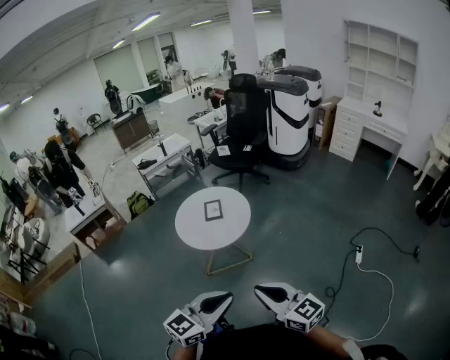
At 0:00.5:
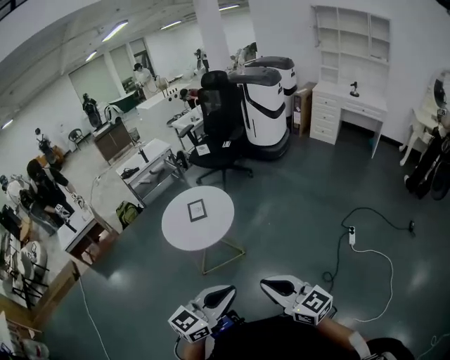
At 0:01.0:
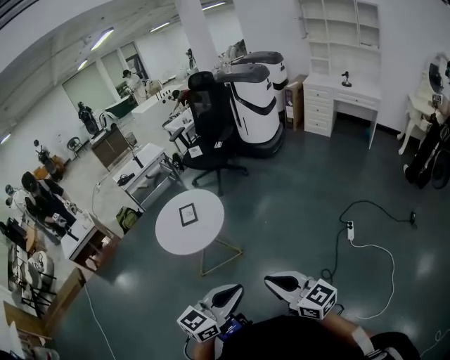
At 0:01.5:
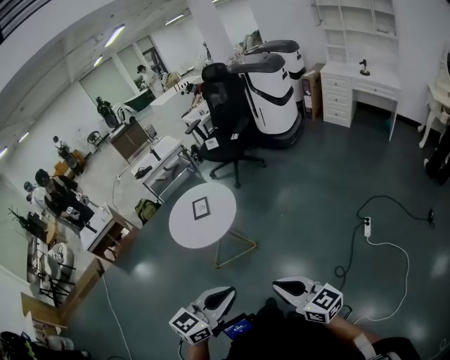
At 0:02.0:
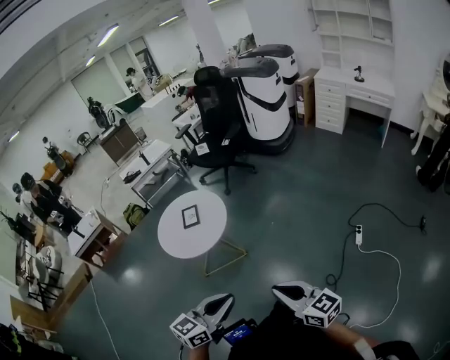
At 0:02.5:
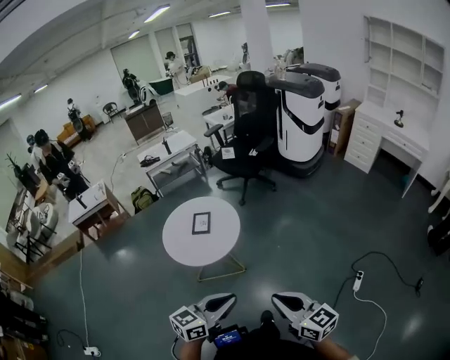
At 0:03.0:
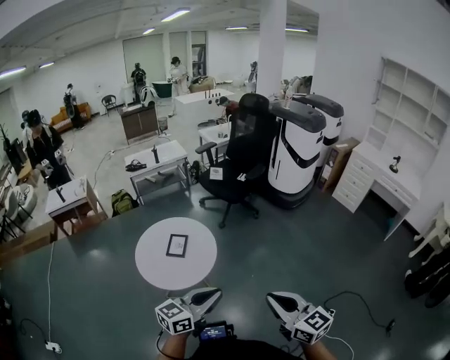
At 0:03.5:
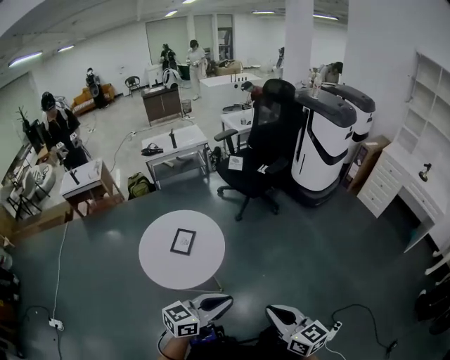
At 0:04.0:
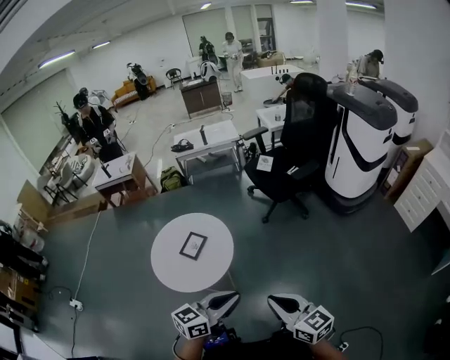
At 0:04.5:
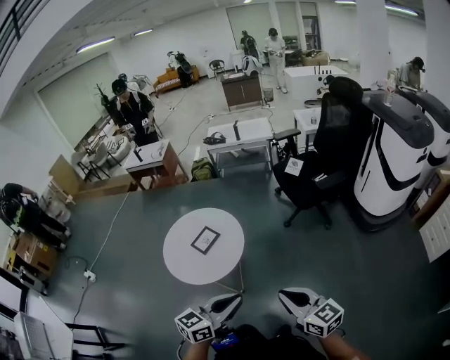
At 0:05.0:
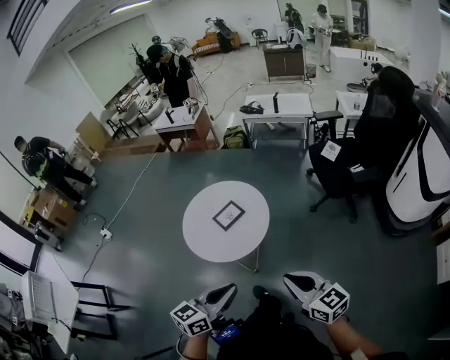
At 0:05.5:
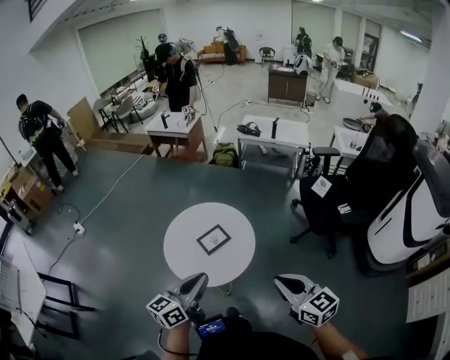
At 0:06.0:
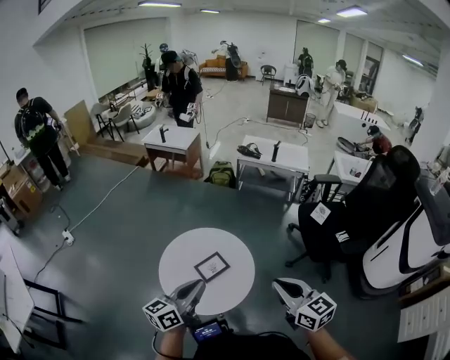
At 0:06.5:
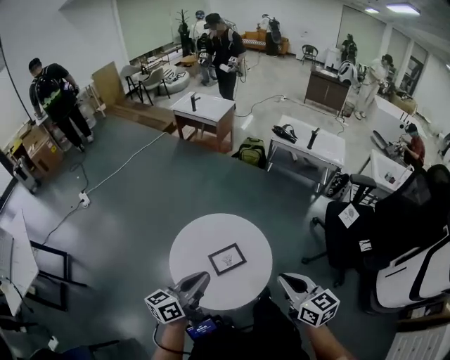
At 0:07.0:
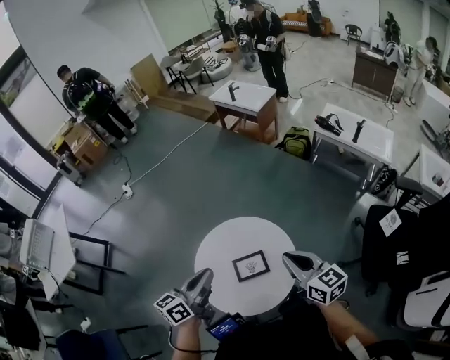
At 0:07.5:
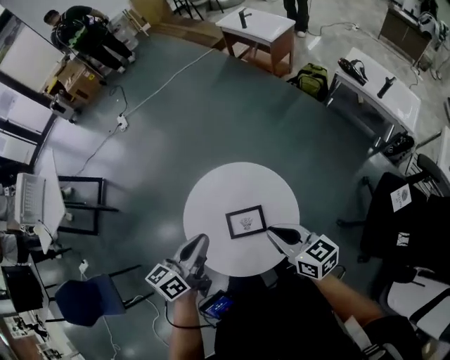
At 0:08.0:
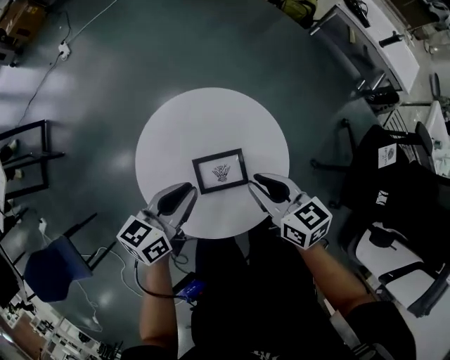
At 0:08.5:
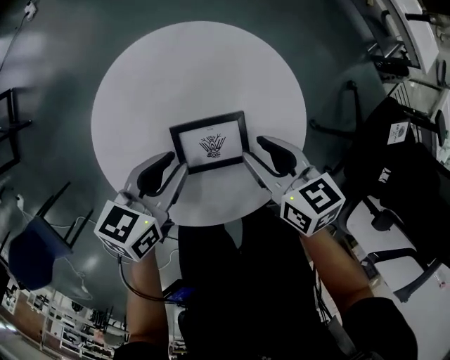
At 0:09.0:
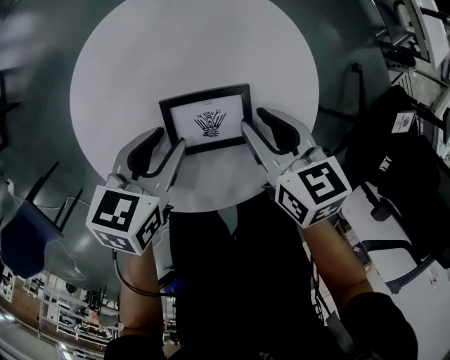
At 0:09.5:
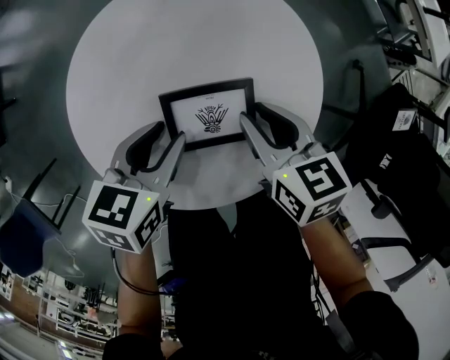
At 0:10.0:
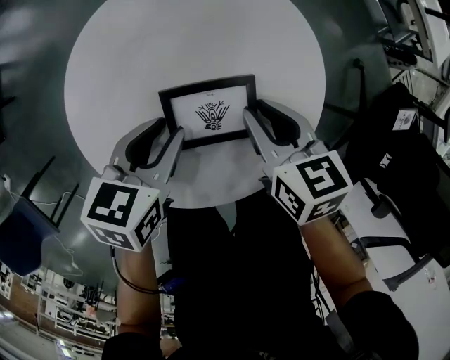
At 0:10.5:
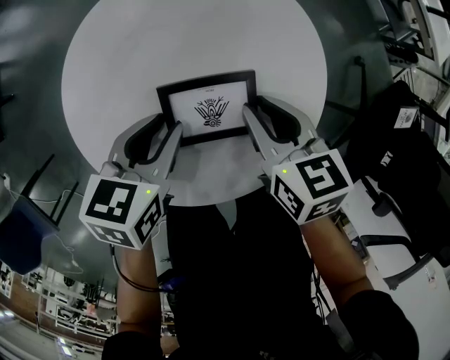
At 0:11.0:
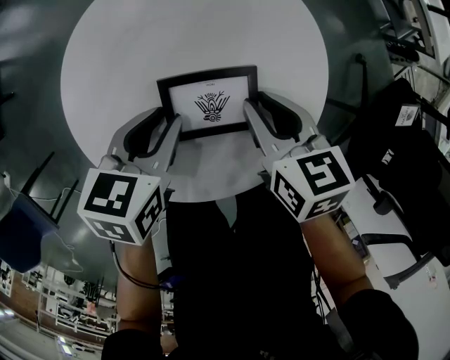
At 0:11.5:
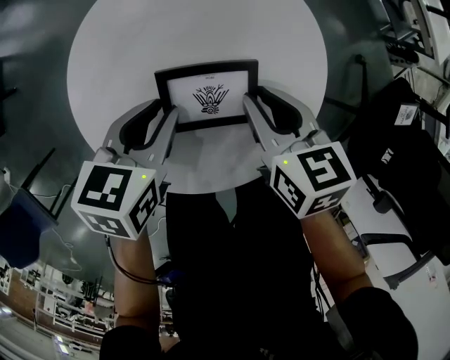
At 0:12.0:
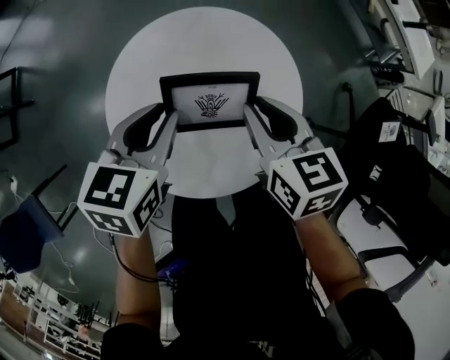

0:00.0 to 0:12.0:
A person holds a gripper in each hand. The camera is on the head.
0:00.0 to 0:02.0: The two grippers go approximately 20 cm to the right.
0:02.0 to 0:04.0: The pair of grippers is taken about 50 cm. The left gripper swivels roughly 30 degrees, while the right gripper swivels approximately 30 degrees.
0:04.0 to 0:06.0: The left gripper ends up roughly 30 cm from where it was, and rotates some 50 degrees, while the right gripper ends up about 35 cm from where it was, and rotates roughly 20 degrees.
0:06.0 to 0:08.0: The left gripper goes some 25 cm downward, and rotates roughly 30 degrees. Meanwhile the right gripper ends up roughly 40 cm from where it was, and changes its angle by roughly 40 degrees.
0:08.0 to 0:10.0: The grippers both shift downward by approximately 15 cm. The left gripper swivels roughly 20 degrees.
0:10.0 to 0:12.0: The grippers both shift upward by about 15 cm.

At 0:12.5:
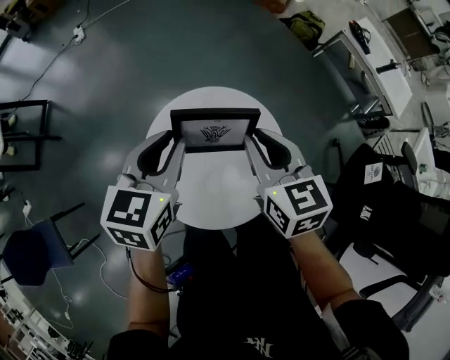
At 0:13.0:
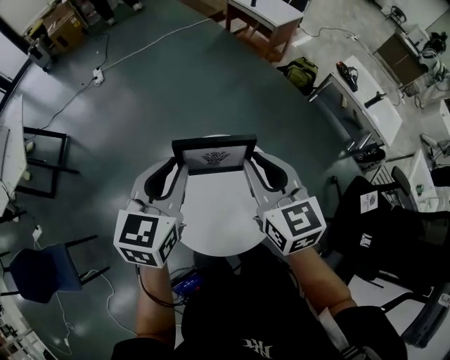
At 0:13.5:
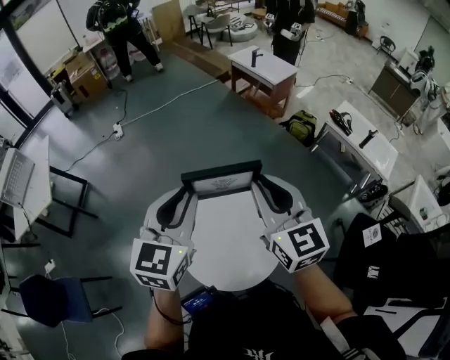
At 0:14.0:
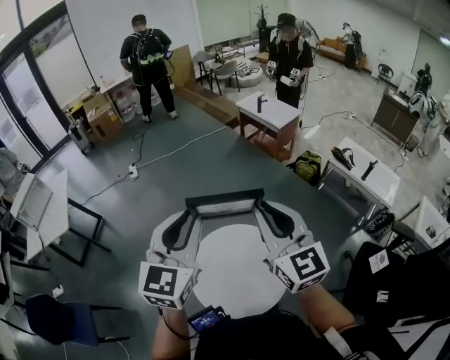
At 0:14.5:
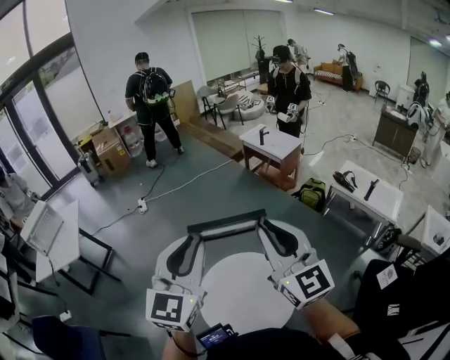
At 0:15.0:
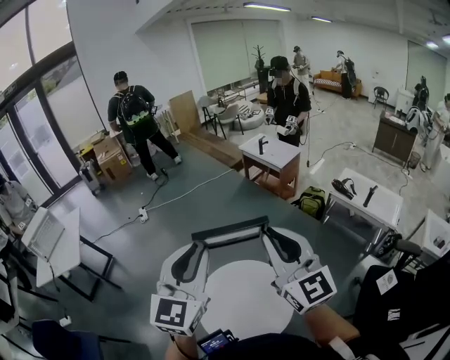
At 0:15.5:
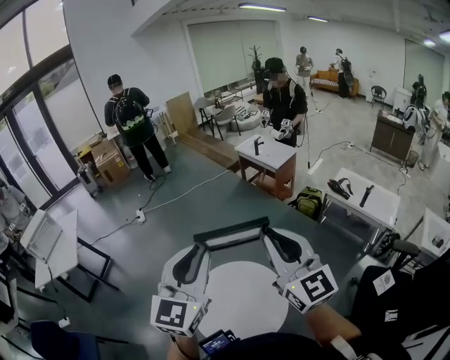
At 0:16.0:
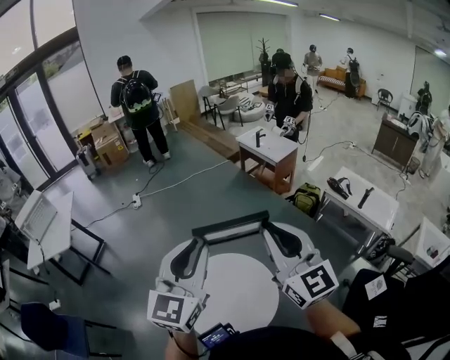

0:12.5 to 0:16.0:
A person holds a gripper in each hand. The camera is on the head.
0:12.5 to 0:14.5: Both grippers travel together upward, approximately 40 cm. The right gripper tips its fingers upward by roughly 40 degrees; the left gripper tilts its fingers approximately 30 degrees upward.
0:14.5 to 0:16.0: Both grippers travel together to the right, approximately 10 cm.

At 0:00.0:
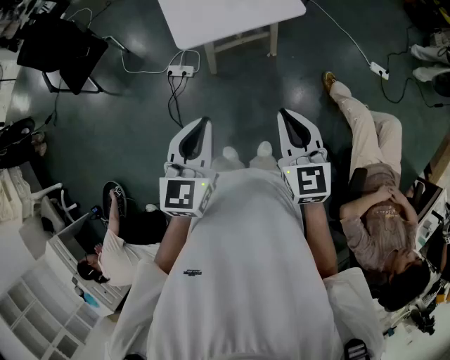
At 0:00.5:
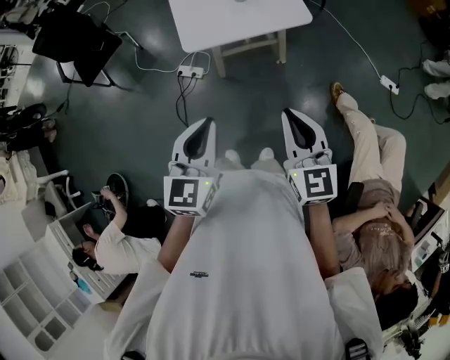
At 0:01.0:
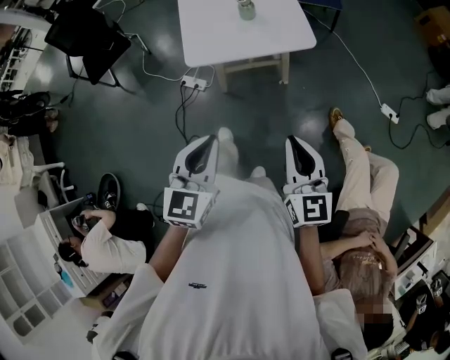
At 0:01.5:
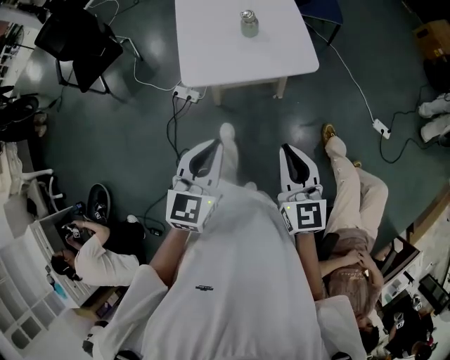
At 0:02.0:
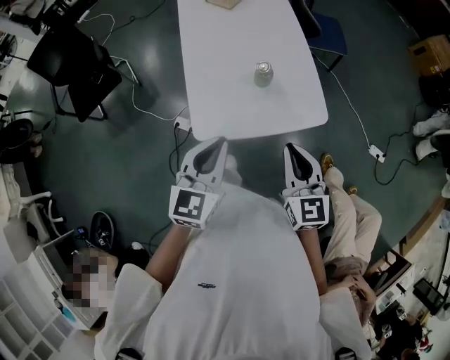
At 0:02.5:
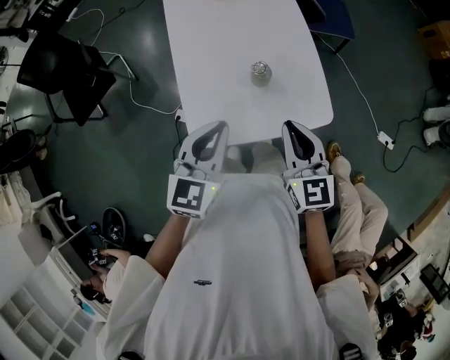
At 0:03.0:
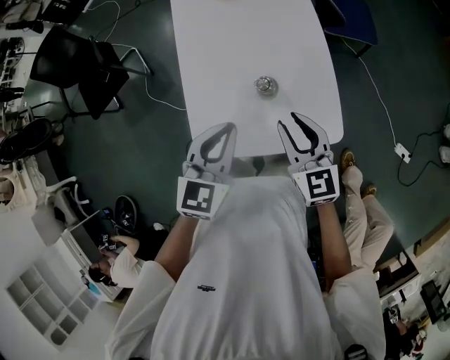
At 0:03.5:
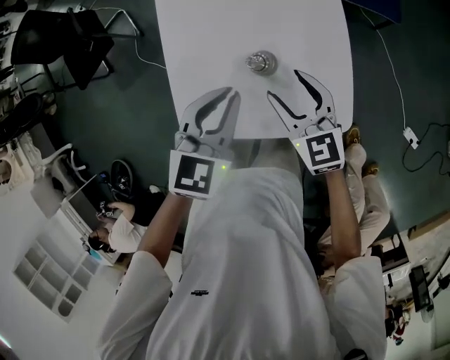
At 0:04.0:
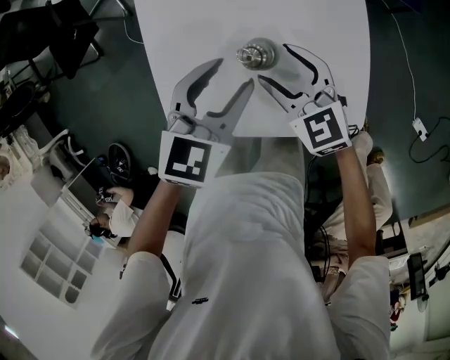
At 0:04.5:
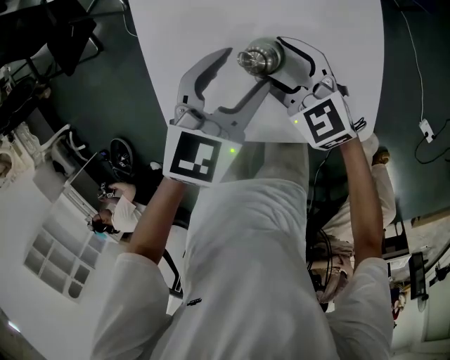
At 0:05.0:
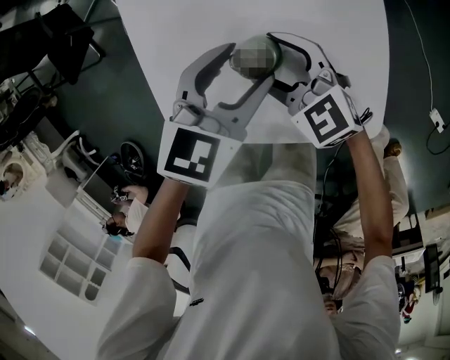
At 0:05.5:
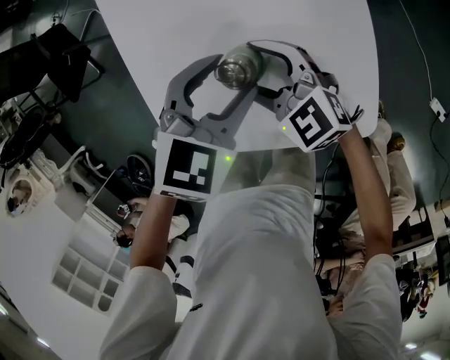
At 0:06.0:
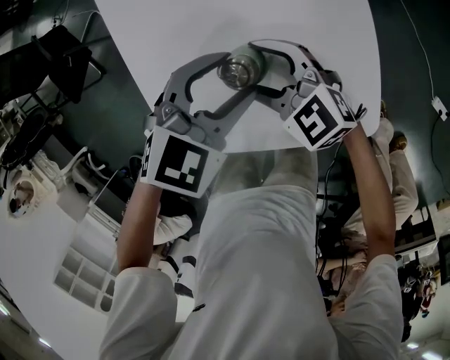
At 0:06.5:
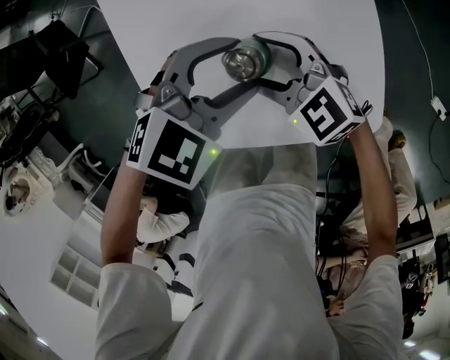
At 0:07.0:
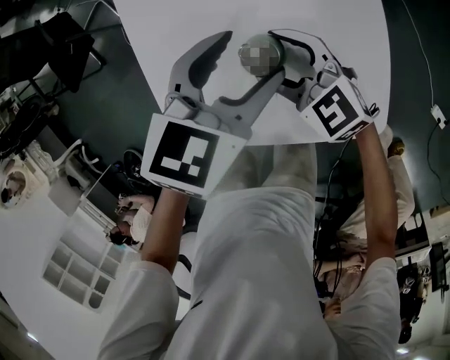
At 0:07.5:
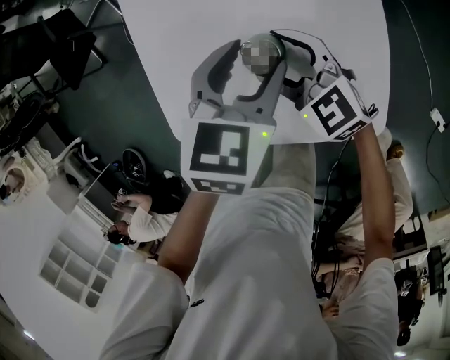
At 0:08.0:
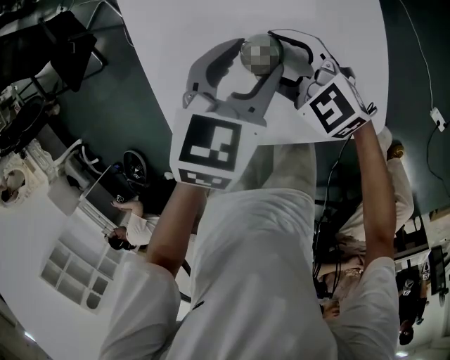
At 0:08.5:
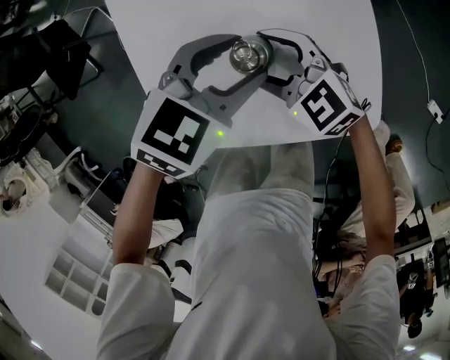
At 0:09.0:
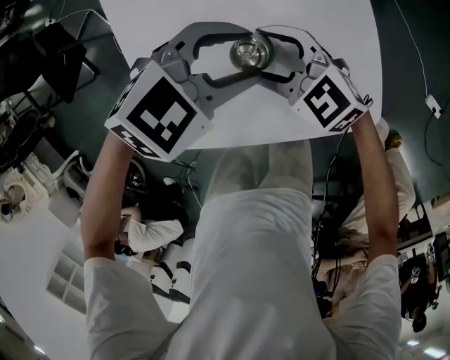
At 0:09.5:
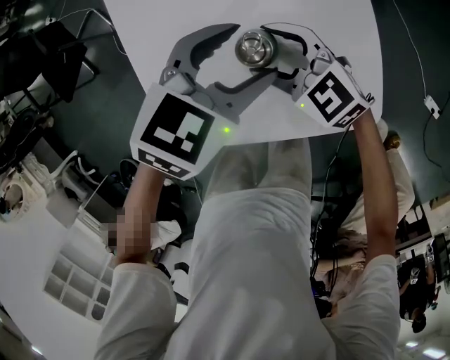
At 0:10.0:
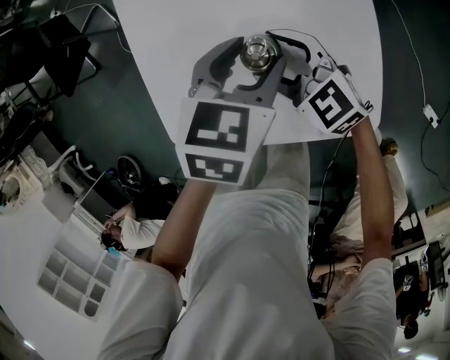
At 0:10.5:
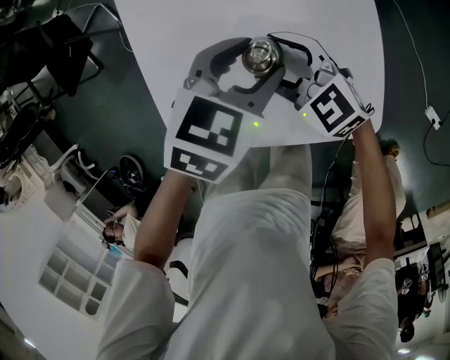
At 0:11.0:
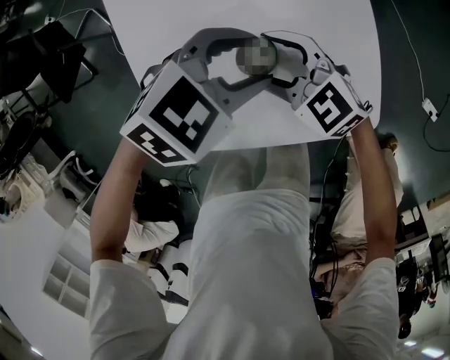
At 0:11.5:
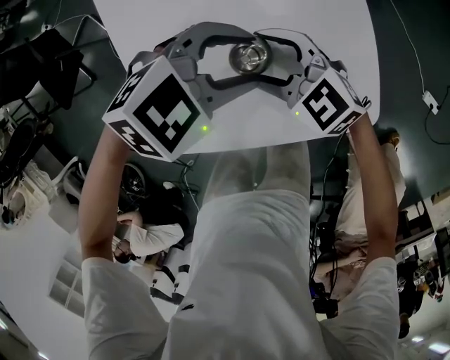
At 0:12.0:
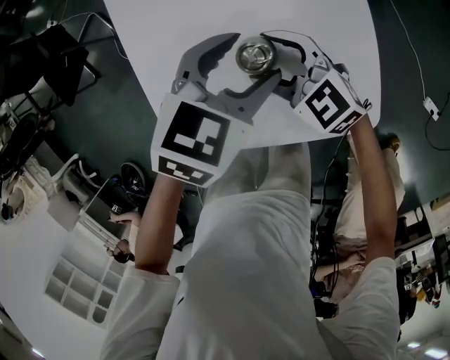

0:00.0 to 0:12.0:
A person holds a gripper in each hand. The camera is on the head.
0:00.0 to 0:02.0: The grippers both shift forward by about 35 cm.
0:02.0 to 0:04.0: The left gripper moves forward, downward and to the right, approximately 35 cm, swivels some 20 degrees, and opens up. Meanwhile the right gripper is displaced forward and downward by some 35 cm, changes its angle by approximately 40 degrees, and opens up.
0:04.0 to 0:06.0: The right gripper ends up approximately 5 cm from where it was. Meanwhile the left gripper shifts by about 5 cm, and turns by some 30 degrees.
0:06.0 to 0:08.0: The left gripper rotates about 30 degrees.
0:10.0 to 0:12.0: The left gripper rotates roughly 20 degrees.
